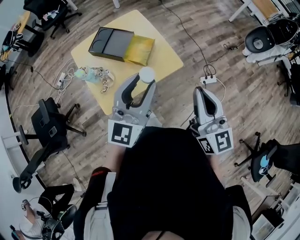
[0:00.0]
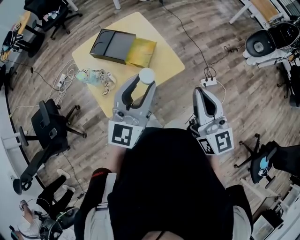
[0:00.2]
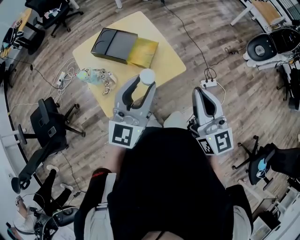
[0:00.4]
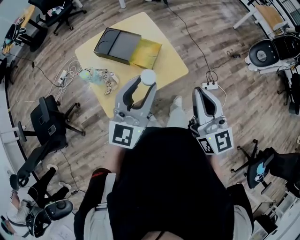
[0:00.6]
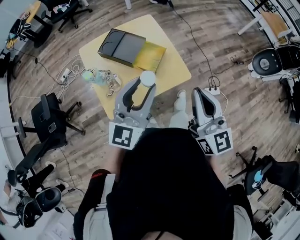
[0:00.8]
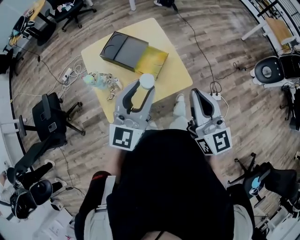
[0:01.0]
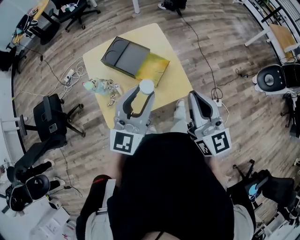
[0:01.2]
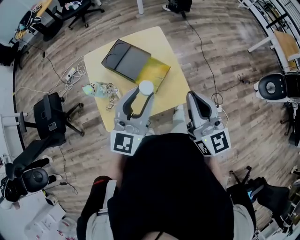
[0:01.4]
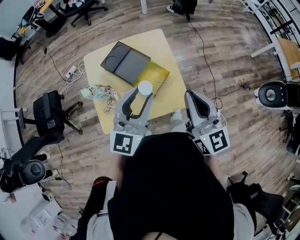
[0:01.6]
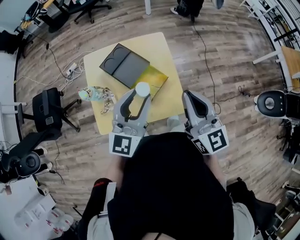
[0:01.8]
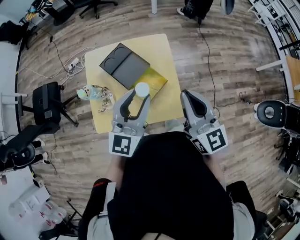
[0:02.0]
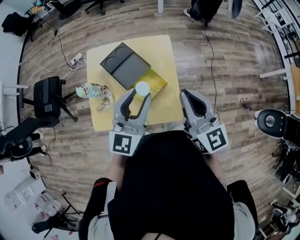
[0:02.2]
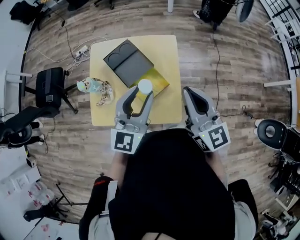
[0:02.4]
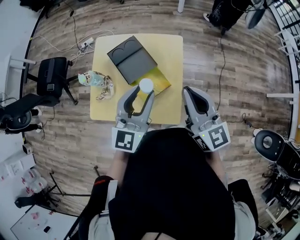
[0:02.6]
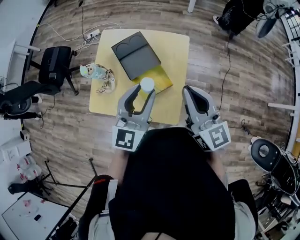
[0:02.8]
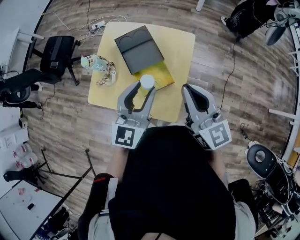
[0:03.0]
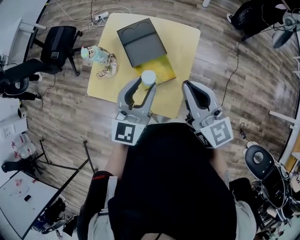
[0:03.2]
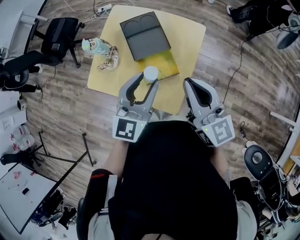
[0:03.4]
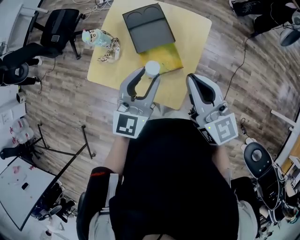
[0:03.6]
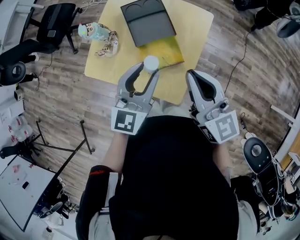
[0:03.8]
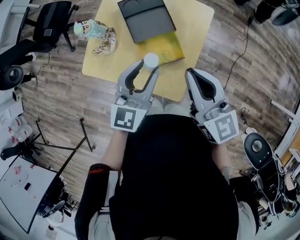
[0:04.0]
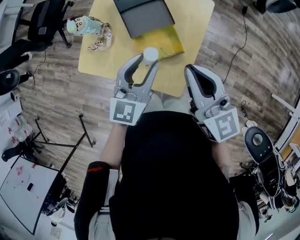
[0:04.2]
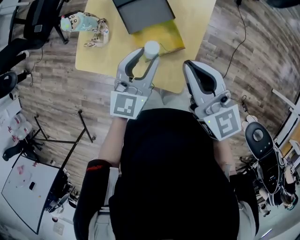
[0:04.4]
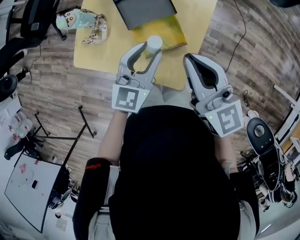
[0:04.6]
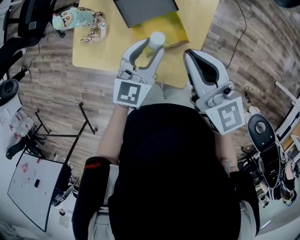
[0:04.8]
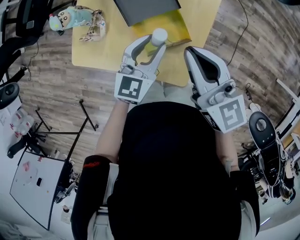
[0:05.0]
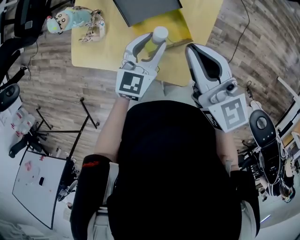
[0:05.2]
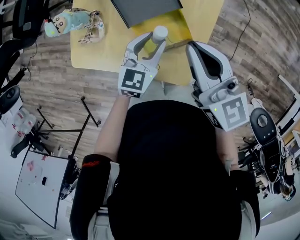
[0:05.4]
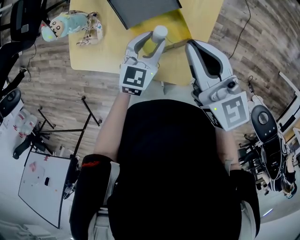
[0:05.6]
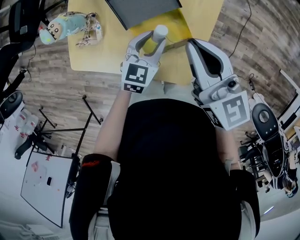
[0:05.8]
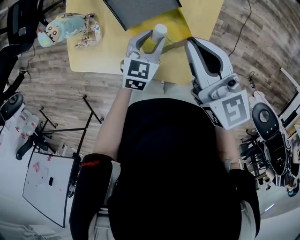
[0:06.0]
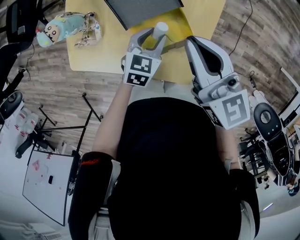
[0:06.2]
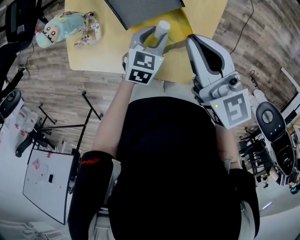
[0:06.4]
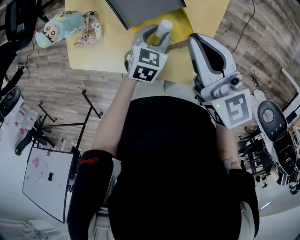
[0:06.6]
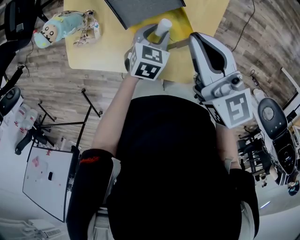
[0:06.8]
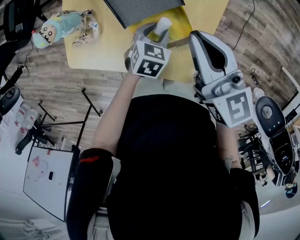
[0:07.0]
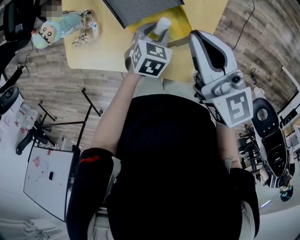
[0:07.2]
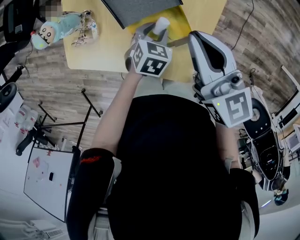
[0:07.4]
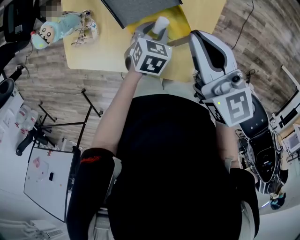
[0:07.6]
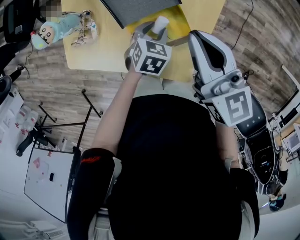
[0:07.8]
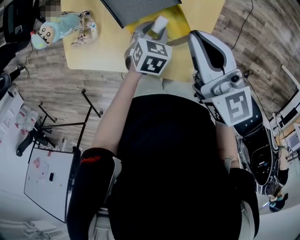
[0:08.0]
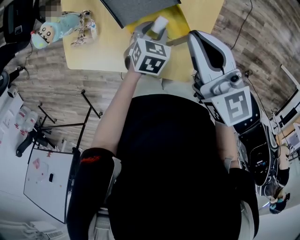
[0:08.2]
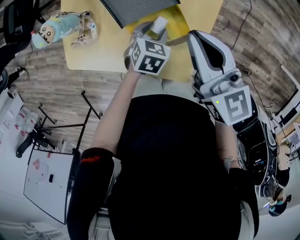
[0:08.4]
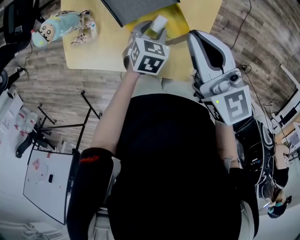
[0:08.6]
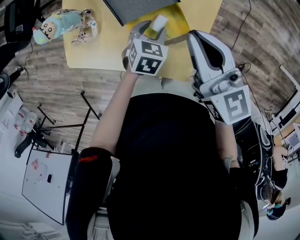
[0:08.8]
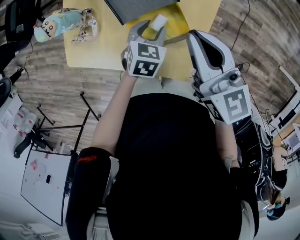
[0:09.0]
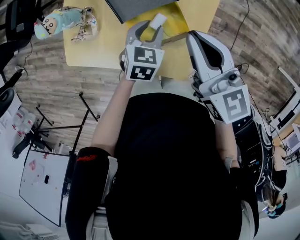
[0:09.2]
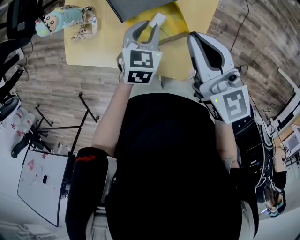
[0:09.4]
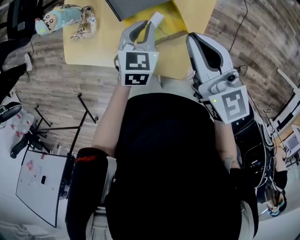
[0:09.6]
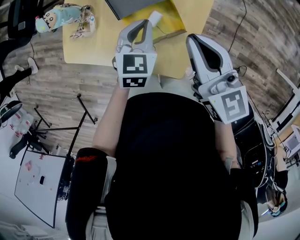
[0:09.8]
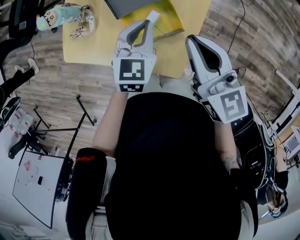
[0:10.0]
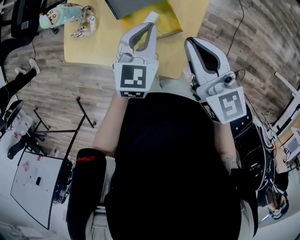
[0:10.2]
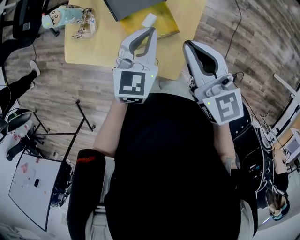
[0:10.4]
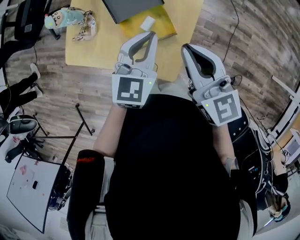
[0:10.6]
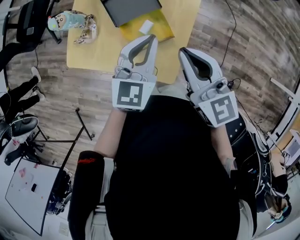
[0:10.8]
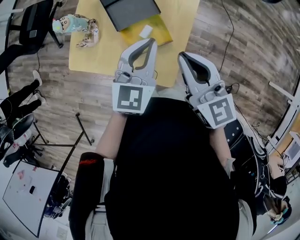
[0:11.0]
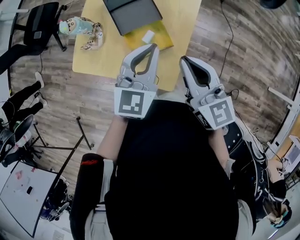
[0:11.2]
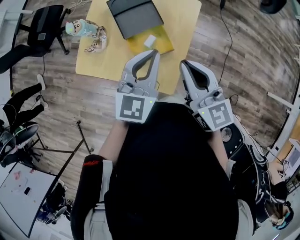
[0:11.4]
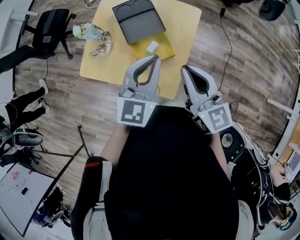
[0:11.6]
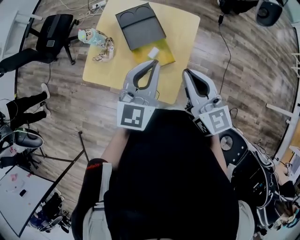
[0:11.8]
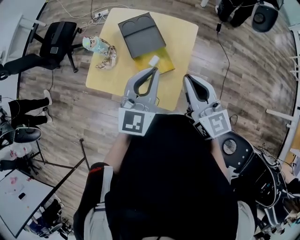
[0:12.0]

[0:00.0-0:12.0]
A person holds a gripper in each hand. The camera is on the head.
0:00.0 to 0:01.6: The two grippers go roughly 20 cm forward. The right gripper rotates about 20 degrees.
0:01.6 to 0:03.0: The right gripper changes place by roughly 15 cm, and rotates roughly 40 degrees. Meanwhile the left gripper shifts by approximately 10 cm, and rotates some 30 degrees.
0:03.0 to 0:04.4: The right gripper shifts approximately 10 cm downward. Meanwhile the left gripper goes roughly 15 cm downward.
0:04.4 to 0:06.0: The right gripper moves forward and downward, about 10 cm. The left gripper travels downward by approximately 20 cm, and turns by some 30 degrees.
0:06.0 to 0:07.6: The left gripper moves downward, roughly 5 cm, and changes its angle by about 20 degrees.
0:07.6 to 0:09.0: The grippers make only small movements.
0:09.0 to 0:10.4: The right gripper heads backward, covering about 5 cm. The left gripper moves upward, some 15 cm, turns by about 30 degrees, and closes.
0:10.4 to 0:12.0: The right gripper travels upward and backward by approximately 10 cm. Meanwhile the left gripper is displaced upward and backward by about 20 cm, and turns by roughly 20 degrees.

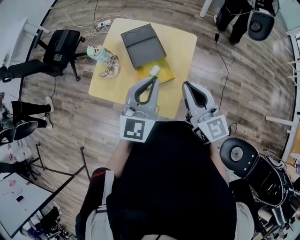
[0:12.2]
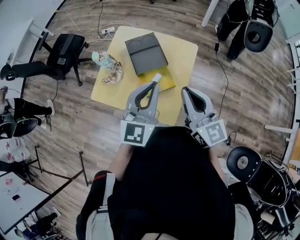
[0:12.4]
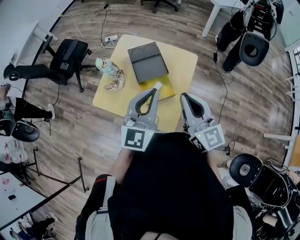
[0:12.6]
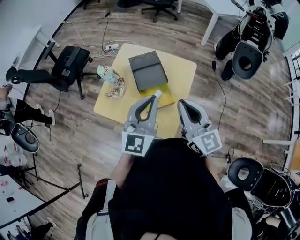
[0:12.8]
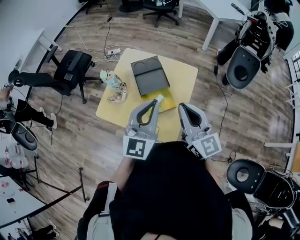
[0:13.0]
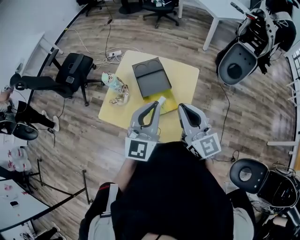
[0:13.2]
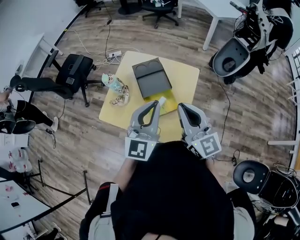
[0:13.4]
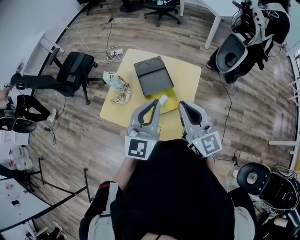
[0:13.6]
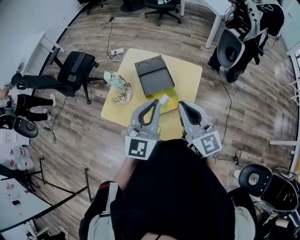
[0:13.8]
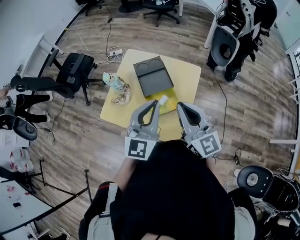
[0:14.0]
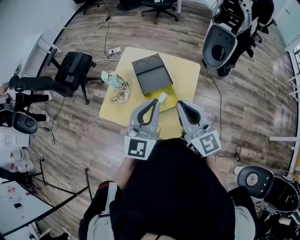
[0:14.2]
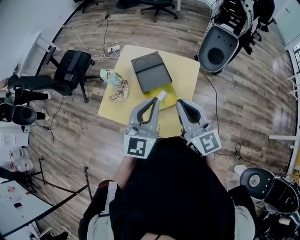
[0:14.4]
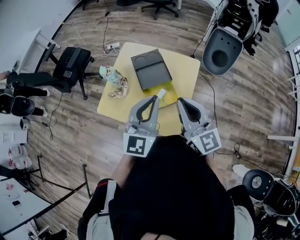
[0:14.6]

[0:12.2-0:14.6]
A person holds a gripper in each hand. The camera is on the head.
0:12.2 to 0:13.4: There are only small adjustments of the grippers.
0:13.4 to 0:14.6: Both grippers stay put.

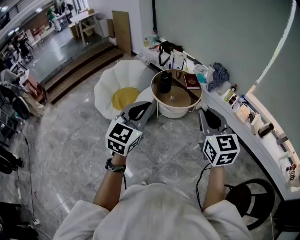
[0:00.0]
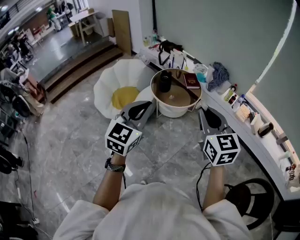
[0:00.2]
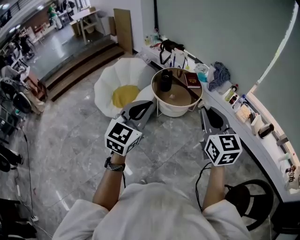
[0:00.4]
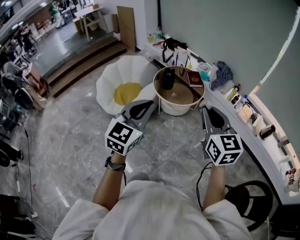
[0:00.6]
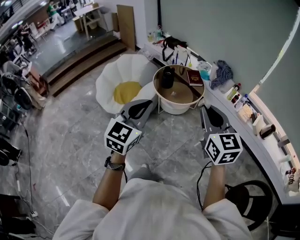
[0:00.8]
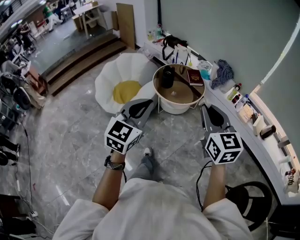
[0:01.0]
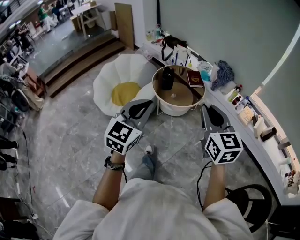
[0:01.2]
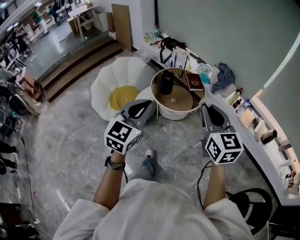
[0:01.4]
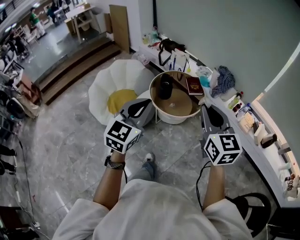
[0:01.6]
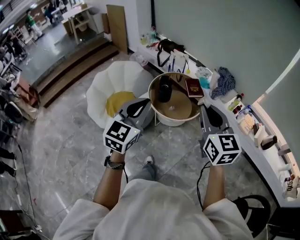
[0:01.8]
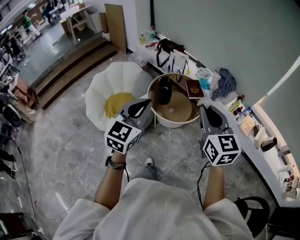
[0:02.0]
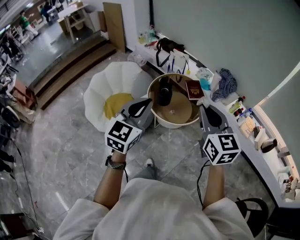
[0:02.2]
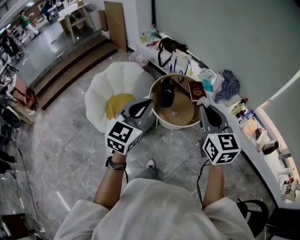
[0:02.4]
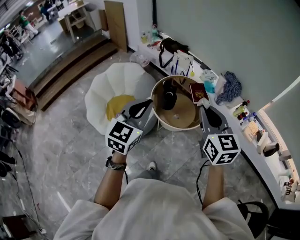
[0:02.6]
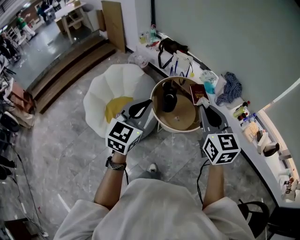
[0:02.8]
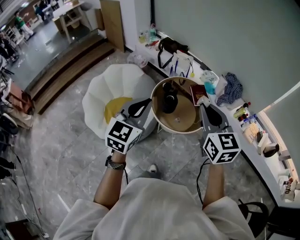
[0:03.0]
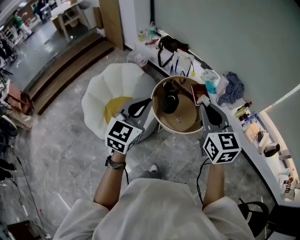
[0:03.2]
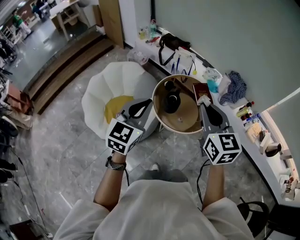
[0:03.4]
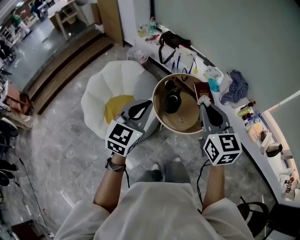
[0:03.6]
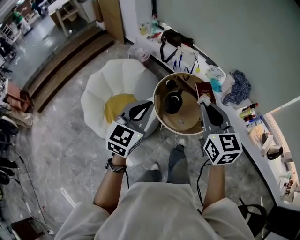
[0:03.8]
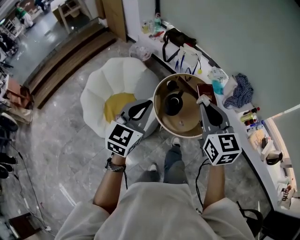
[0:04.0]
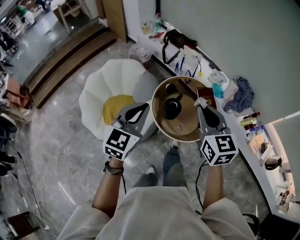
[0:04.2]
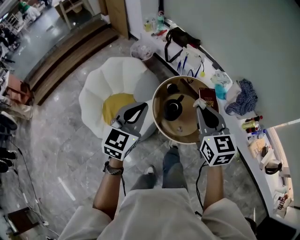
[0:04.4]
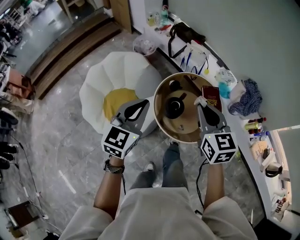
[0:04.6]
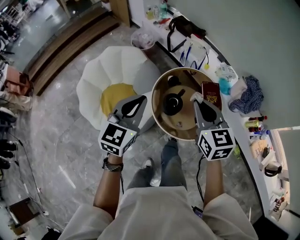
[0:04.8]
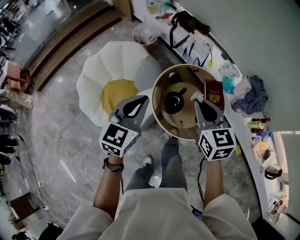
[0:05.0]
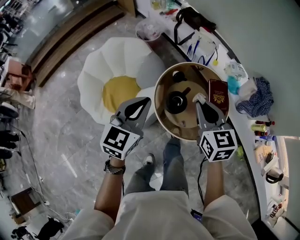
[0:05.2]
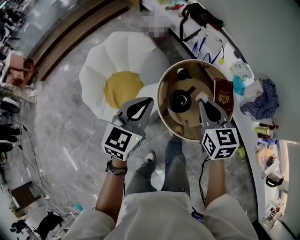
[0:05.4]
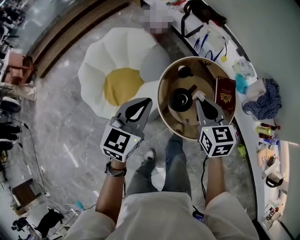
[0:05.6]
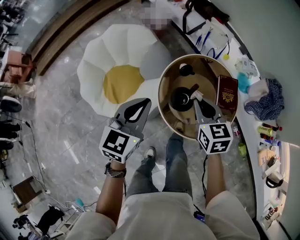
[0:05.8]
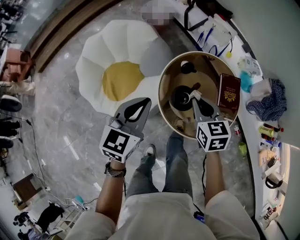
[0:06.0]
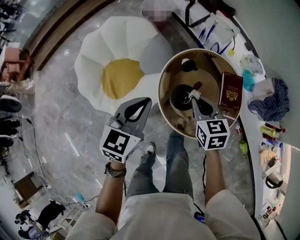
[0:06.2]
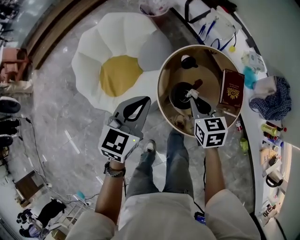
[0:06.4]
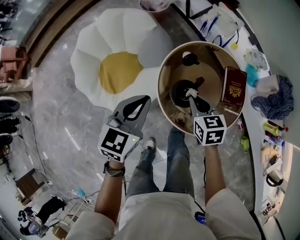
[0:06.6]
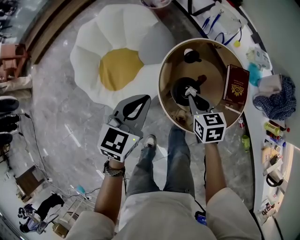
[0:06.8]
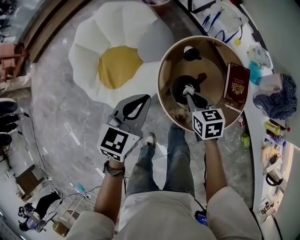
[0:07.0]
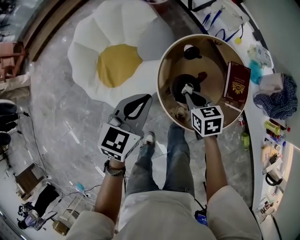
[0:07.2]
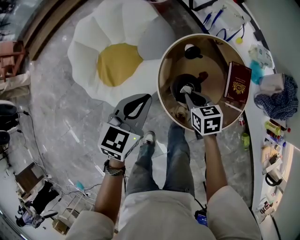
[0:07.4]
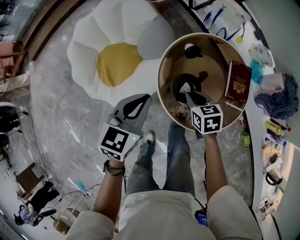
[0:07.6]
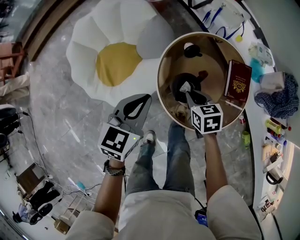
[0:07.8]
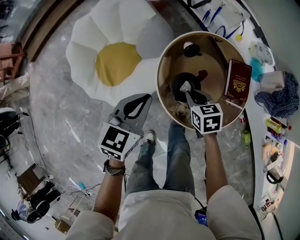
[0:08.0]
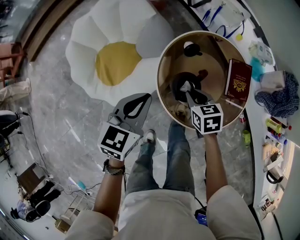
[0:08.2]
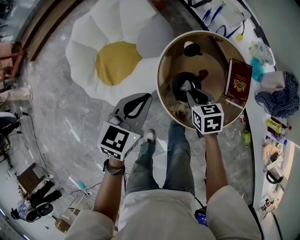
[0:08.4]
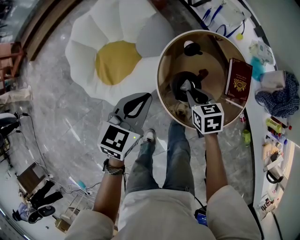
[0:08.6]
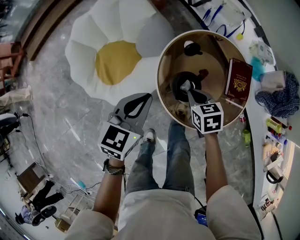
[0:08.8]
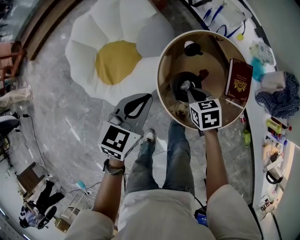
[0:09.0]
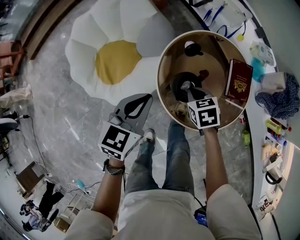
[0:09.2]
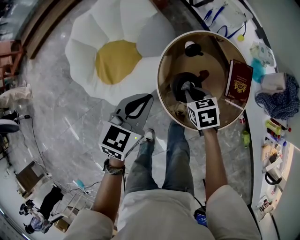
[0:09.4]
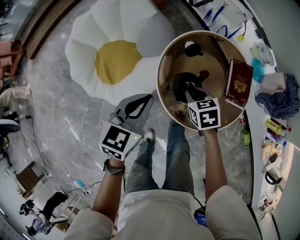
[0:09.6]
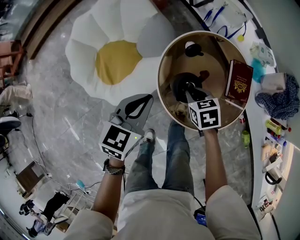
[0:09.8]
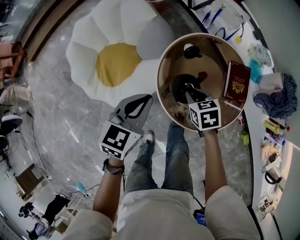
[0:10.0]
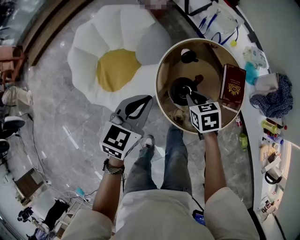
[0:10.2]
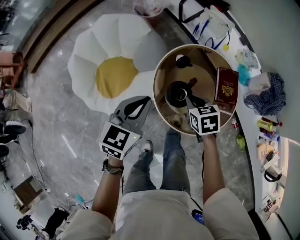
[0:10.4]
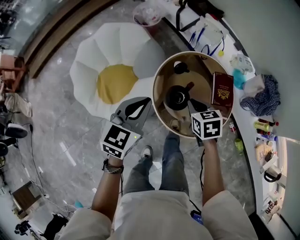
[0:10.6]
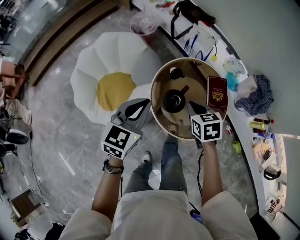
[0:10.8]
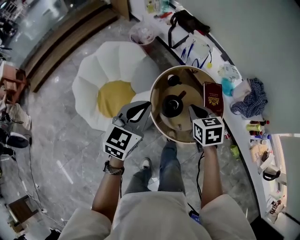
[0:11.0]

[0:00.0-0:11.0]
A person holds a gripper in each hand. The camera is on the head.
0:00.0 to 0:01.6: The two grippers go about 20 cm forward.
0:01.6 to 0:03.2: The two grippers go approximately 30 cm forward and to the left.
0:03.2 to 0:04.8: The grippers both shift forward and downward by roughly 25 cm.
0:04.8 to 0:06.2: The right gripper travels downward by roughly 25 cm, and changes its angle by roughly 20 degrees. The left gripper goes about 15 cm downward and forward.
0:06.2 to 0:07.8: The right gripper travels downward by some 15 cm; the left gripper is displaced downward by roughly 10 cm.
0:07.8 to 0:09.4: There are only small adjustments of the grippers.
0:09.4 to 0:11.0: Both grippers move upward, some 20 cm. The right gripper changes its angle by roughly 20 degrees.
